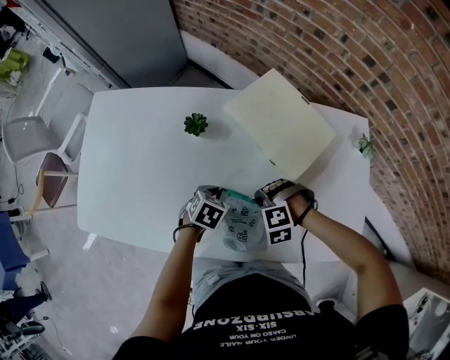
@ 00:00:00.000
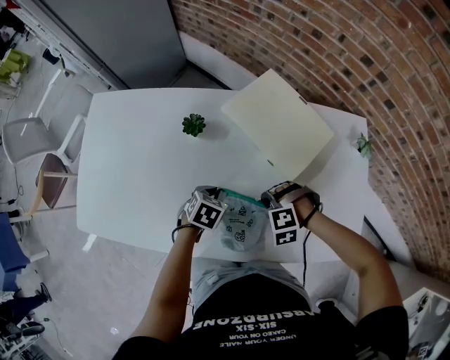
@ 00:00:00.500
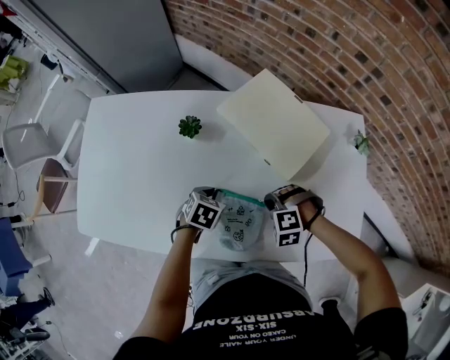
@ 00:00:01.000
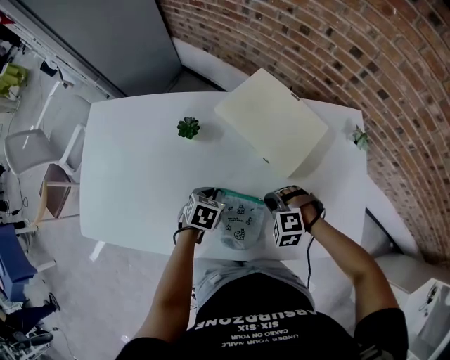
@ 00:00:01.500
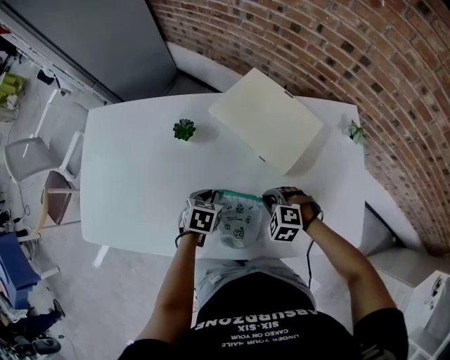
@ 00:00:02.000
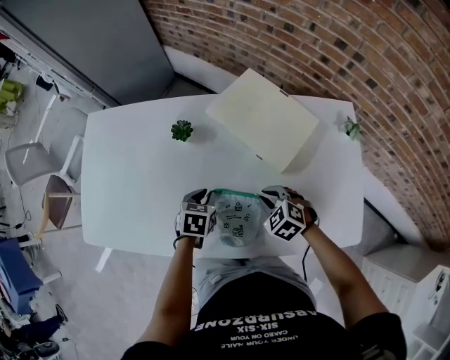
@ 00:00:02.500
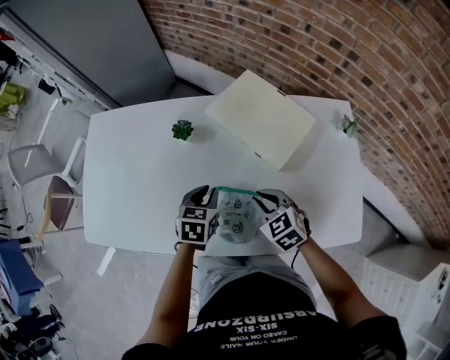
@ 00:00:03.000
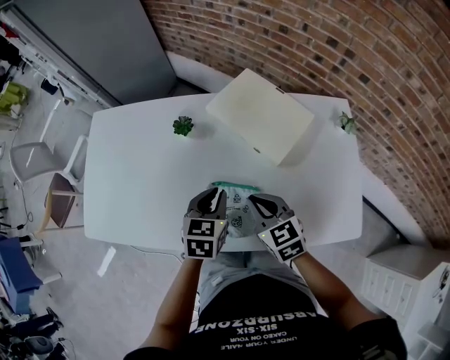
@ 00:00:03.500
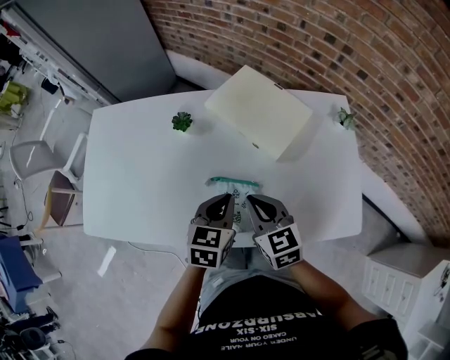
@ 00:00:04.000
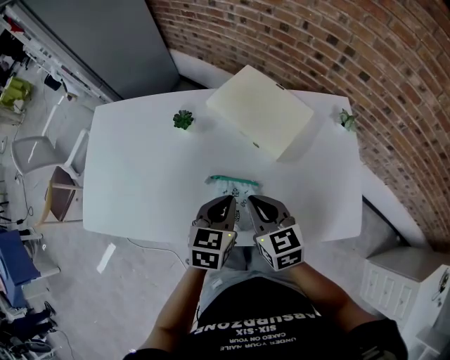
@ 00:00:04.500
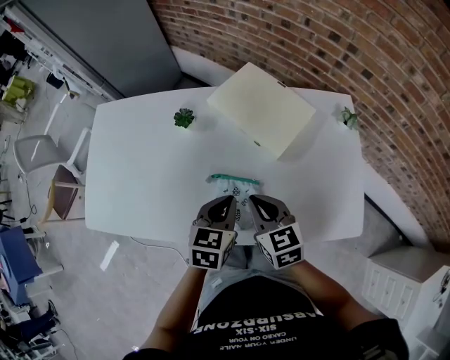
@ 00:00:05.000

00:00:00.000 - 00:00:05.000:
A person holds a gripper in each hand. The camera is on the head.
00:00:00.000 - 00:00:02.500: The right gripper rolls clockwise, seen from behind, by some 50 degrees.
00:00:02.500 - 00:00:05.000: The right gripper heads upward and backward, covering some 15 cm, and changes its angle by approximately 40 degrees, while the left gripper goes about 20 cm upward, backward and to the right.

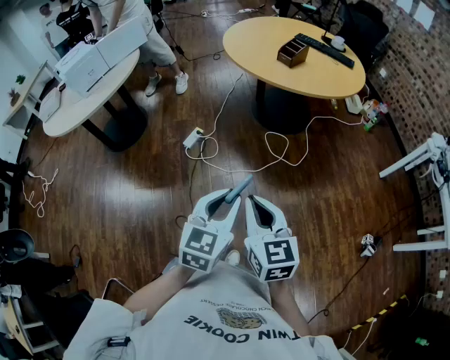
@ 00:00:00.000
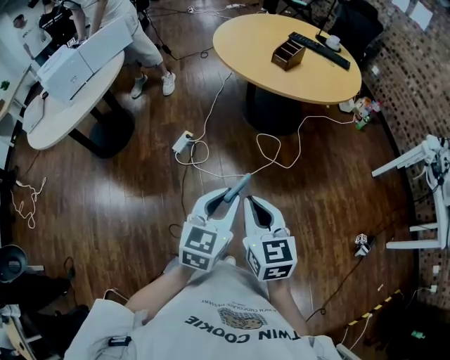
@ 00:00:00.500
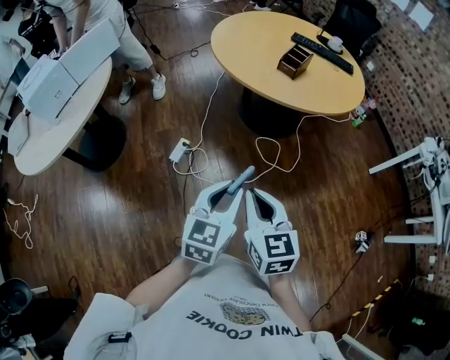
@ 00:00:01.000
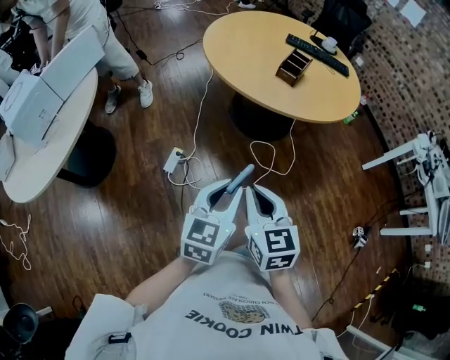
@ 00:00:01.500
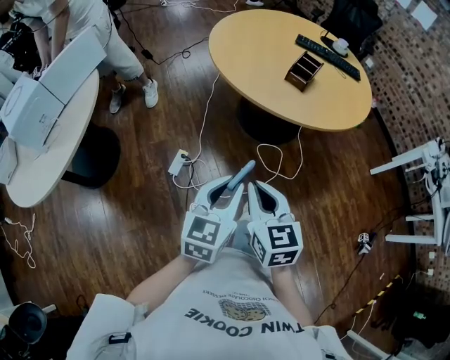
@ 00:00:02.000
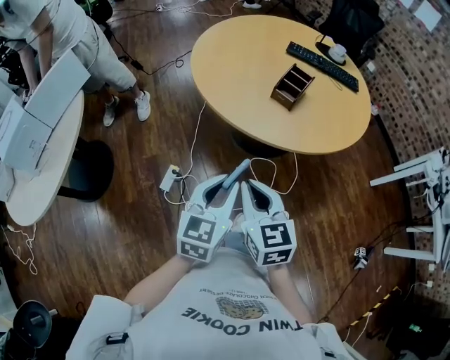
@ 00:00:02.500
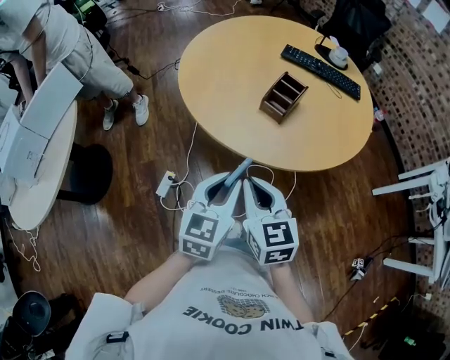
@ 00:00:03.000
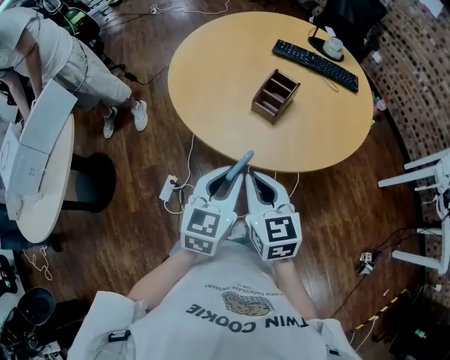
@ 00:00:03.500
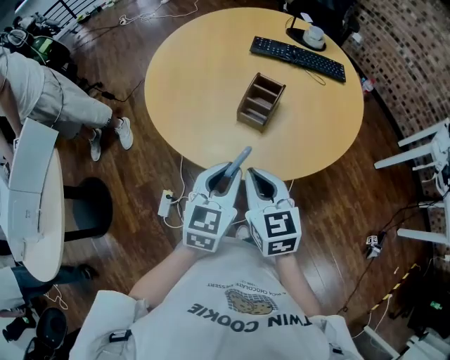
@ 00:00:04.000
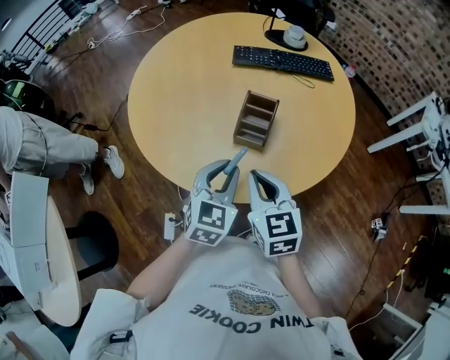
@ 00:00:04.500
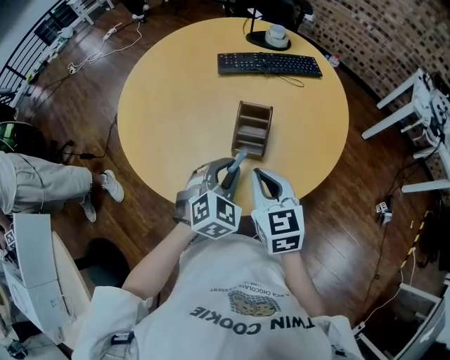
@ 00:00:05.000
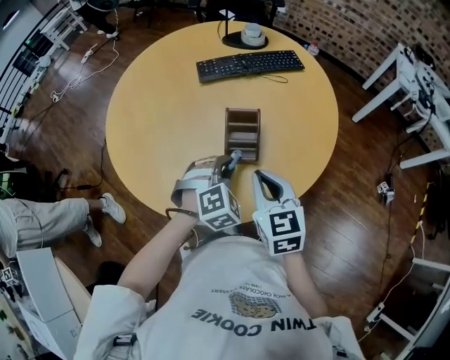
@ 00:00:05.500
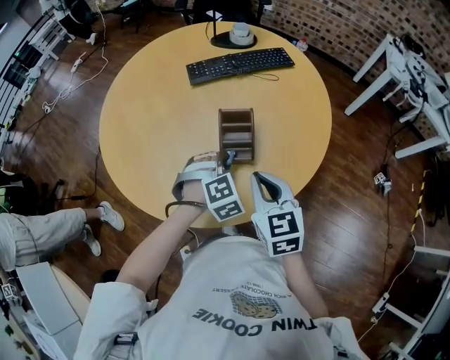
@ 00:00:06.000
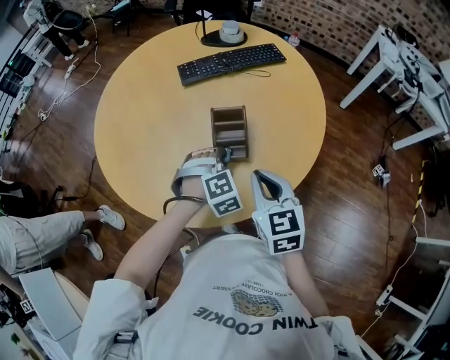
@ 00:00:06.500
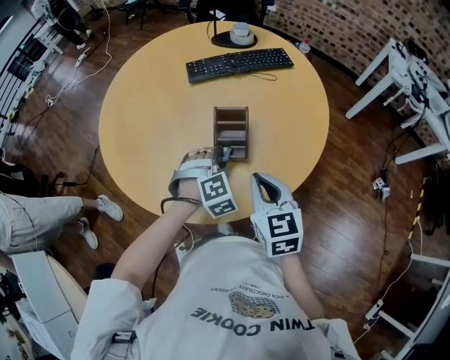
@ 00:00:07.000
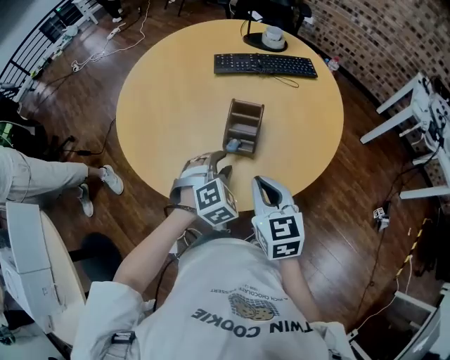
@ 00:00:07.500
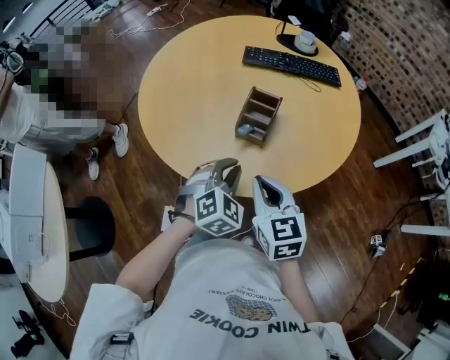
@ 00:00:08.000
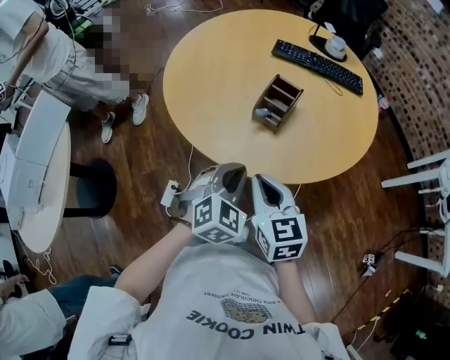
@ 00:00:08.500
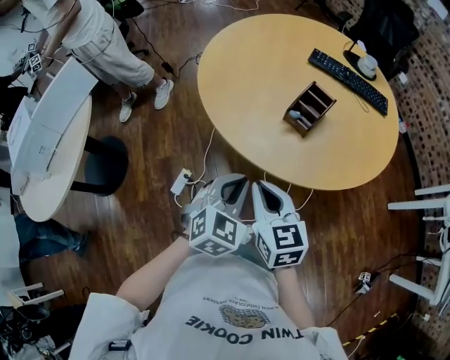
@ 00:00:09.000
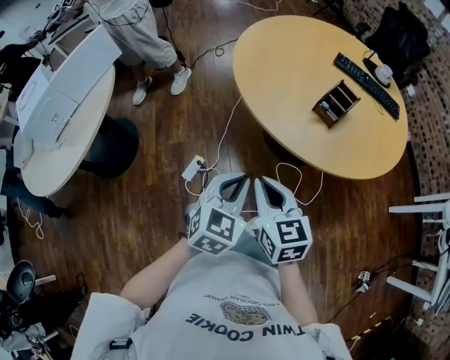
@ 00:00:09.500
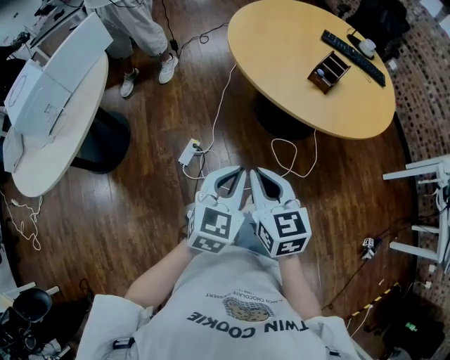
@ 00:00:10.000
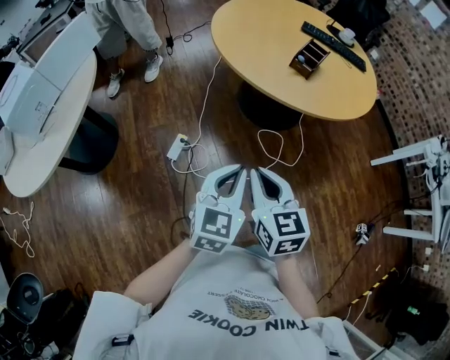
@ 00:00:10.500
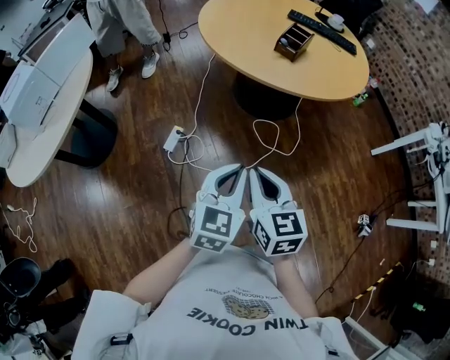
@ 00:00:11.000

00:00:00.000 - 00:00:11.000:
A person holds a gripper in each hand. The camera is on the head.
00:00:00.000 - 00:00:02.000: The two grippers go some 40 cm forward and to the left.
00:00:02.000 - 00:00:03.500: The two grippers go about 30 cm forward and to the right.
00:00:03.500 - 00:00:05.500: The right gripper changes place by roughly 20 cm, and swivels some 30 degrees, while the left gripper ends up roughly 30 cm from where it was, and rotates around the line of its fingers by approximately 70 degrees, clockwise from behind.
00:00:05.500 - 00:00:07.500: The left gripper opens up.
00:00:07.500 - 00:00:09.000: The left gripper travels backward by about 20 cm, twists approximately 40 degrees counterclockwise, seen from behind, and closes its fingers; the right gripper heads backward and to the left, covering approximately 20 cm, and rotates about 30 degrees.
00:00:09.000 - 00:00:11.000: Both grippers move backward, approximately 35 cm. The left gripper changes its angle by approximately 20 degrees.

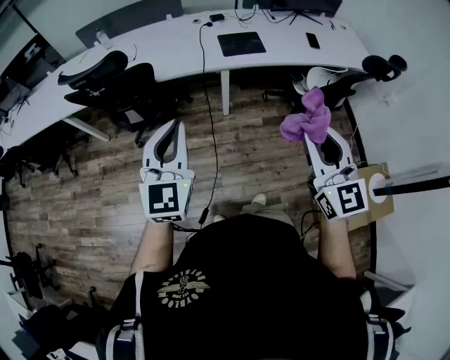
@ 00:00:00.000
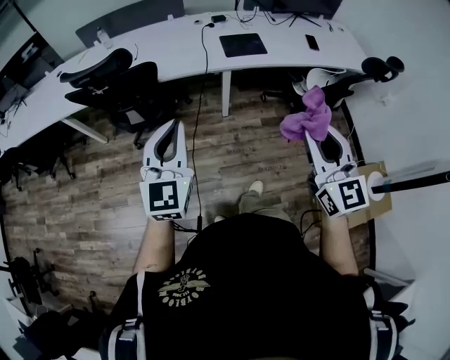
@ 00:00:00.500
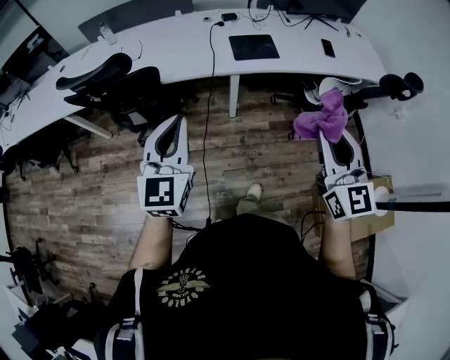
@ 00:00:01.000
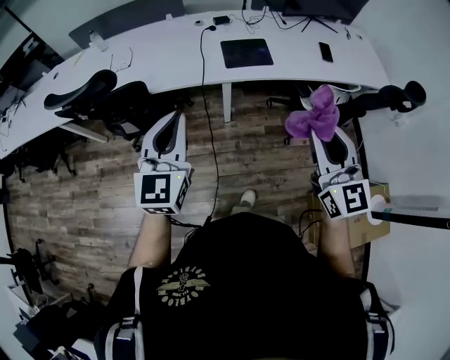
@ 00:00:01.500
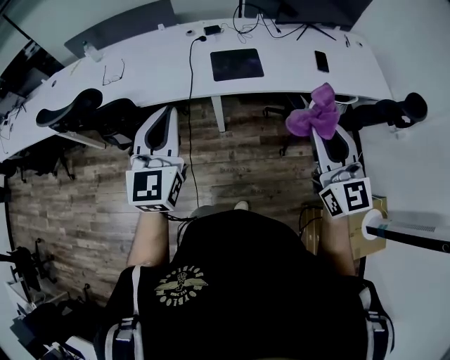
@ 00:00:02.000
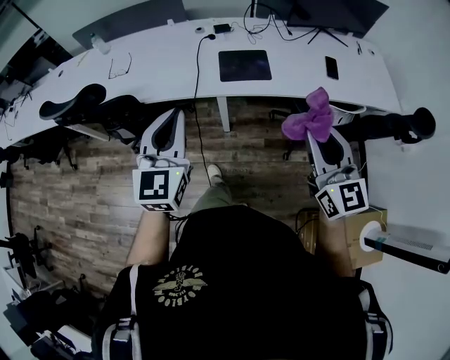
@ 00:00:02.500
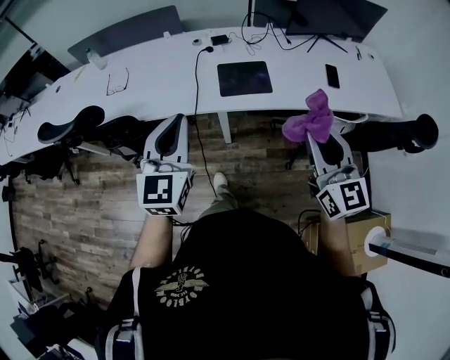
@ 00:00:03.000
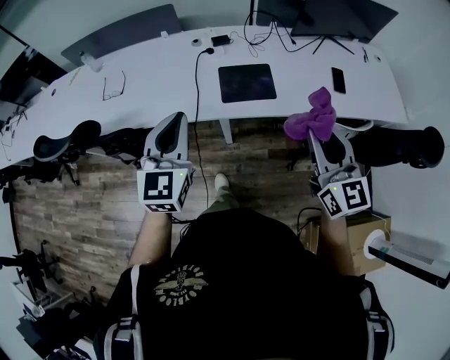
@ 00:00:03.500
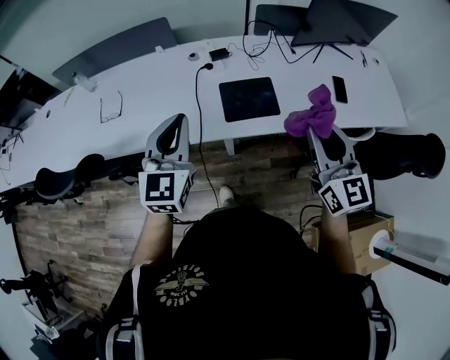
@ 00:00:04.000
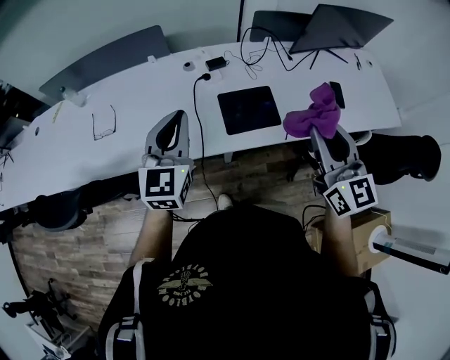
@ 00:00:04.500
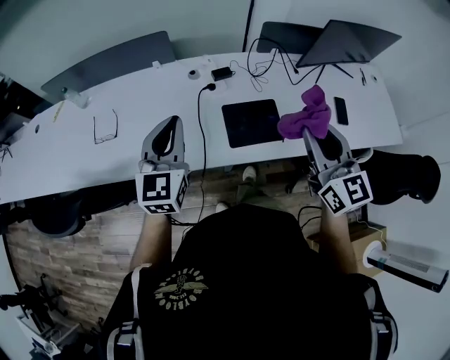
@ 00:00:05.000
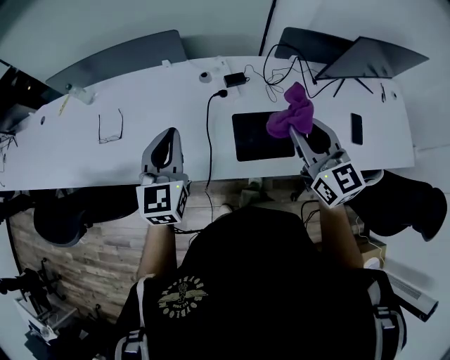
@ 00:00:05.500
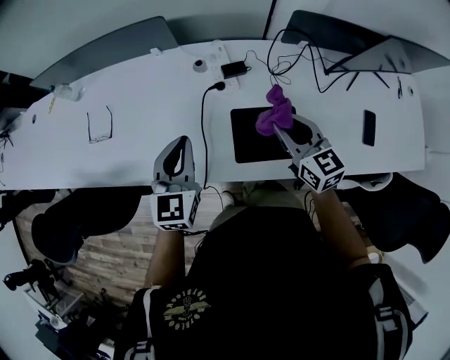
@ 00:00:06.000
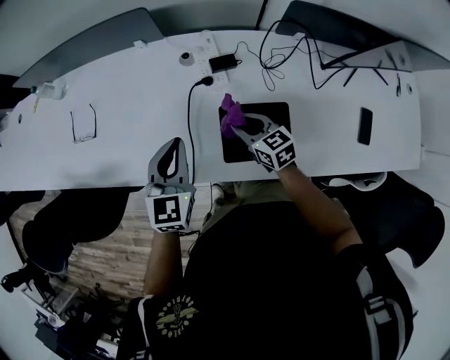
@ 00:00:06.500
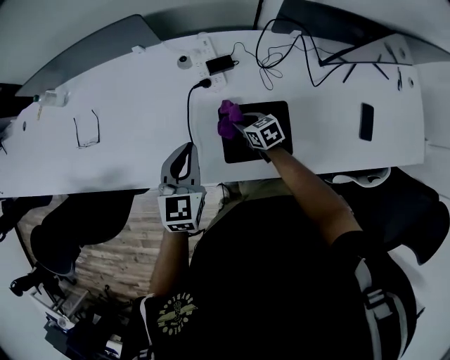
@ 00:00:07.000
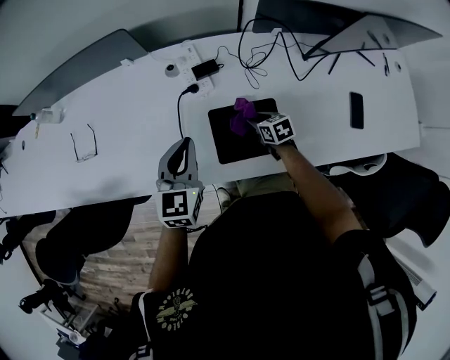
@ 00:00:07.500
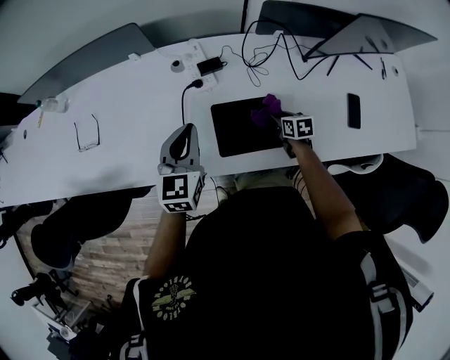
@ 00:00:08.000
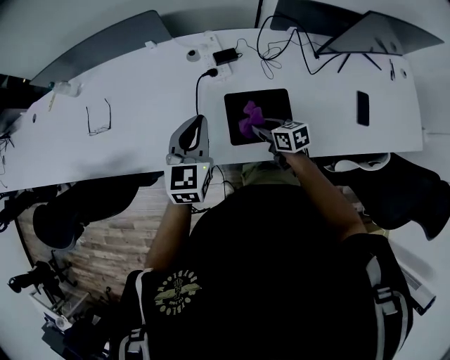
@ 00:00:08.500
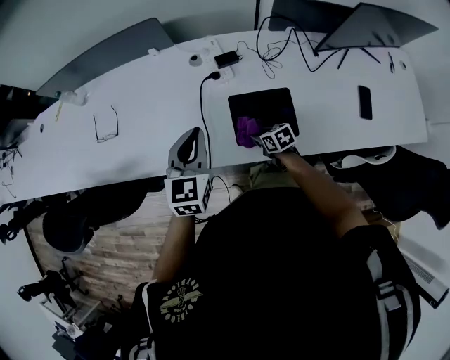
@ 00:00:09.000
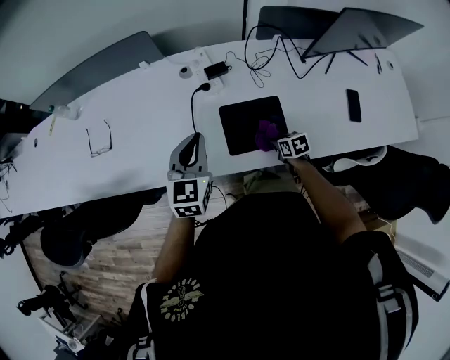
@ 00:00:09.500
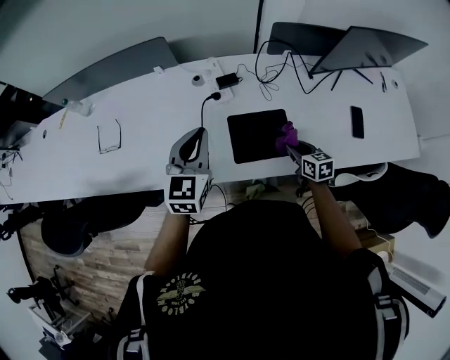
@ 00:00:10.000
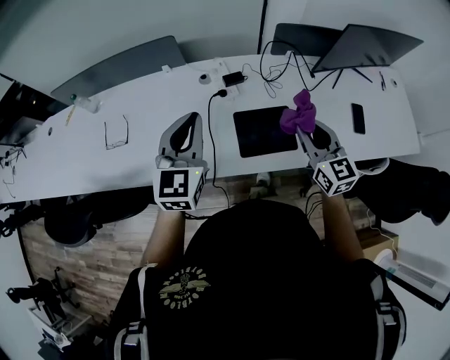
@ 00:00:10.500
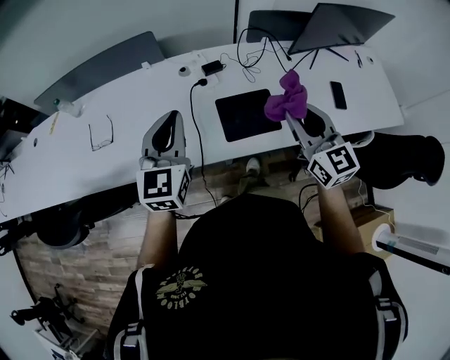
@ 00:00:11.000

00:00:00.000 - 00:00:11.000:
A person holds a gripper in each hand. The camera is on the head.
00:00:00.000 - 00:00:02.000: Both grippers travel together forward and to the right, about 25 cm.
00:00:02.000 - 00:00:03.500: The two grippers go some 15 cm forward.
00:00:03.500 - 00:00:05.500: Both grippers travel together forward, approximately 30 cm.
00:00:05.500 - 00:00:07.500: The left gripper travels downward and to the right by approximately 20 cm. Meanwhile the right gripper goes roughly 40 cm downward, and tilts its fingers about 40 degrees downward.
00:00:07.500 - 00:00:09.000: The right gripper is displaced to the left and backward by roughly 15 cm; the left gripper shifts by some 10 cm.
00:00:09.000 - 00:00:11.000: The left gripper travels upward by about 15 cm. The right gripper heads upward, covering about 40 cm, and points its fingers some 40 degrees further upward.
